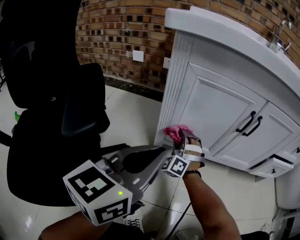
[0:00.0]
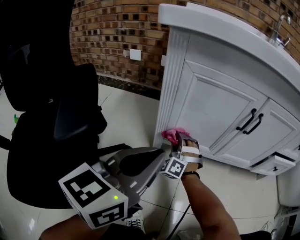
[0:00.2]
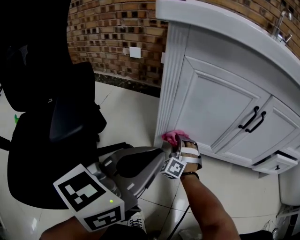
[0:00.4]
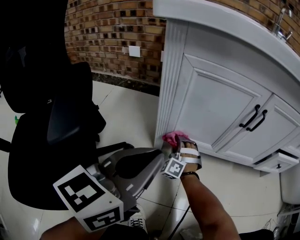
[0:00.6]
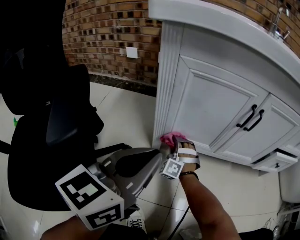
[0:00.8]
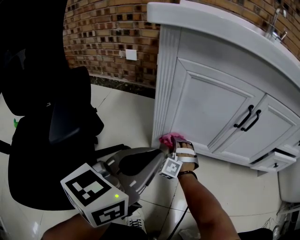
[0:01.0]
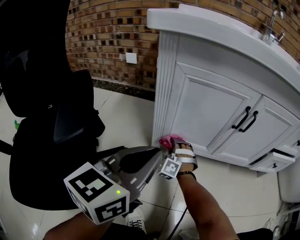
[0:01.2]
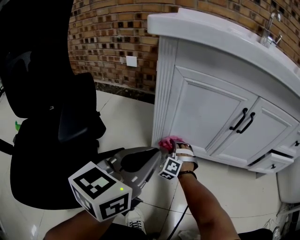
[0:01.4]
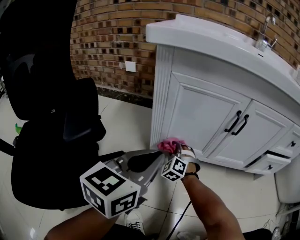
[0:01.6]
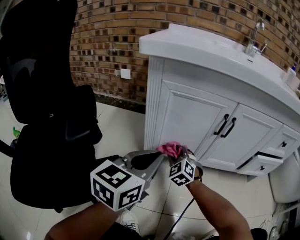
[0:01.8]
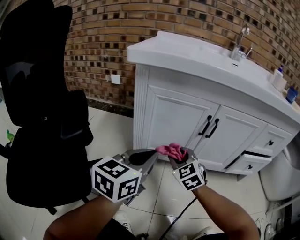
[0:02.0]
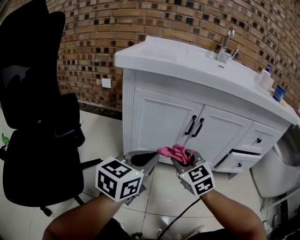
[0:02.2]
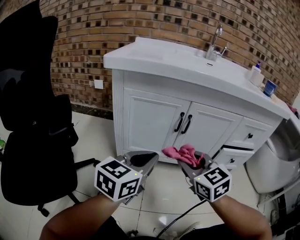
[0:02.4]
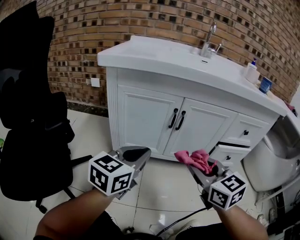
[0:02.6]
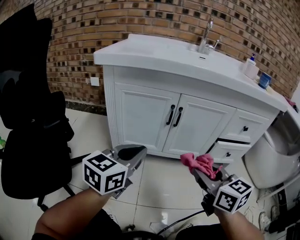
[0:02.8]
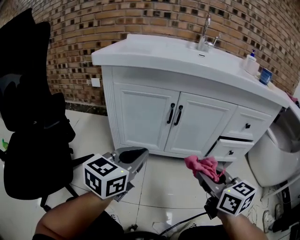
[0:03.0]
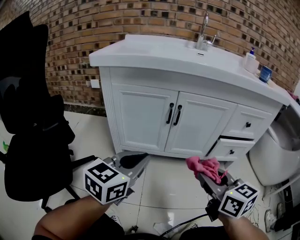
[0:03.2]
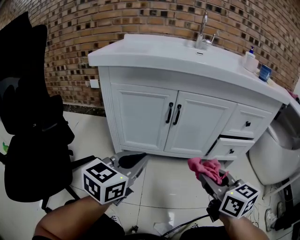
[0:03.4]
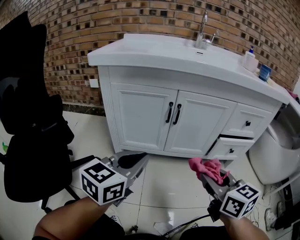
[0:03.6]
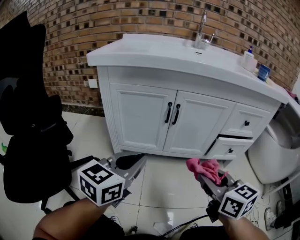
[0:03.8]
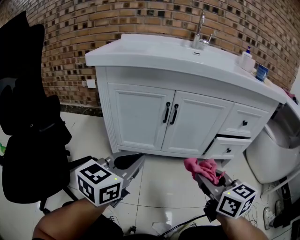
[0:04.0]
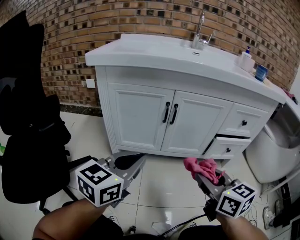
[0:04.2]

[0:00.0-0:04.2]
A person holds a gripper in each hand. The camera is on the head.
0:00.0 to 0:01.4: The right gripper travels downward by about 10 cm.
0:01.4 to 0:02.8: The left gripper heads to the right, covering about 15 cm. The right gripper goes about 50 cm upward, to the right and backward, and rotates around the line of its fingers by about 80 degrees, clockwise from behind.
0:02.8 to 0:04.2: The grippers stay close to where they were, moving slightly.

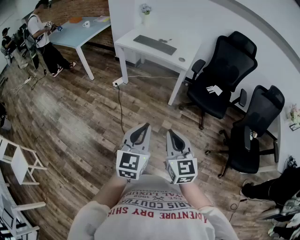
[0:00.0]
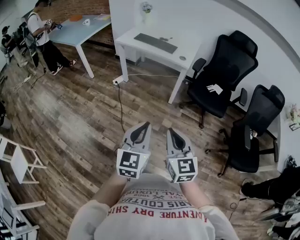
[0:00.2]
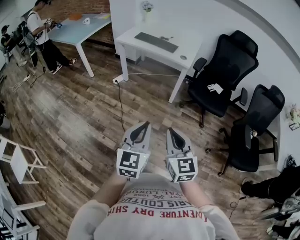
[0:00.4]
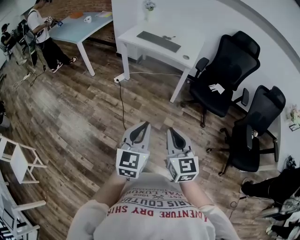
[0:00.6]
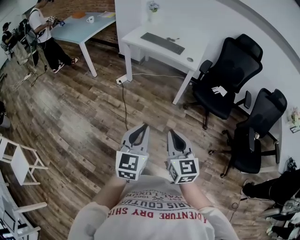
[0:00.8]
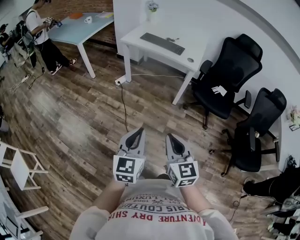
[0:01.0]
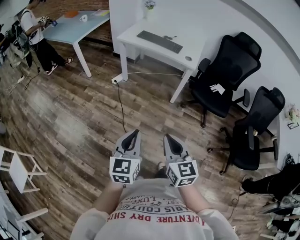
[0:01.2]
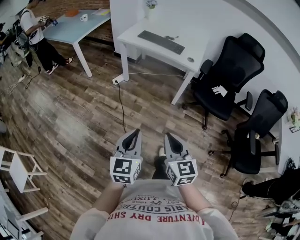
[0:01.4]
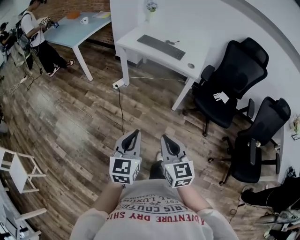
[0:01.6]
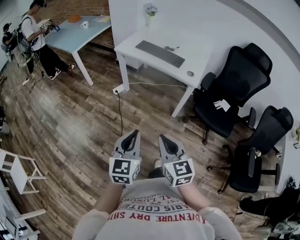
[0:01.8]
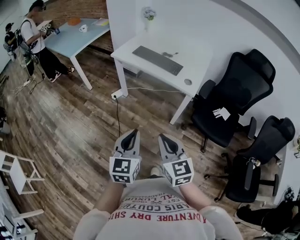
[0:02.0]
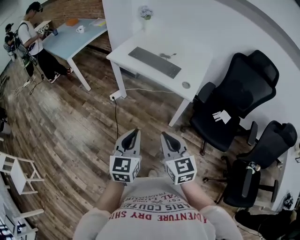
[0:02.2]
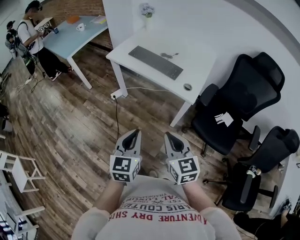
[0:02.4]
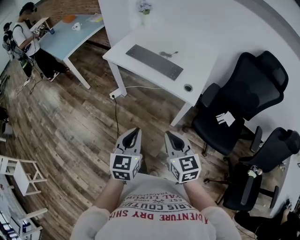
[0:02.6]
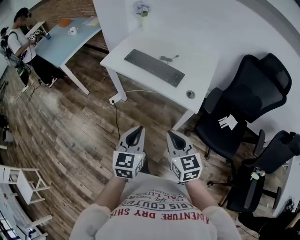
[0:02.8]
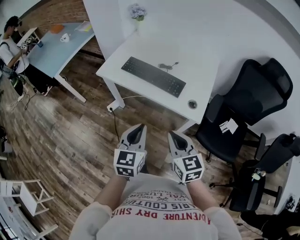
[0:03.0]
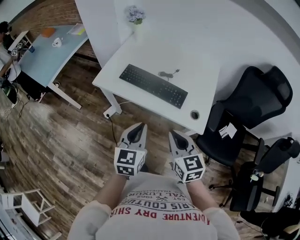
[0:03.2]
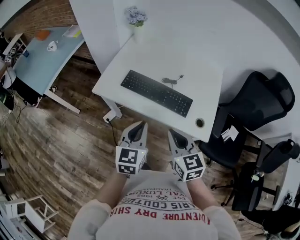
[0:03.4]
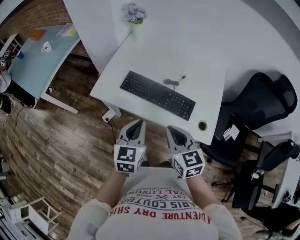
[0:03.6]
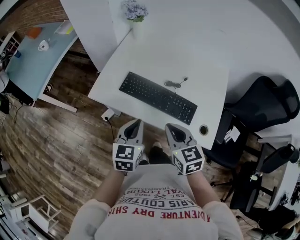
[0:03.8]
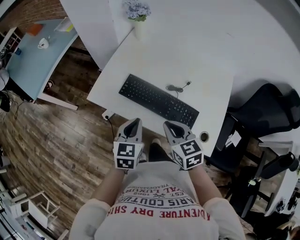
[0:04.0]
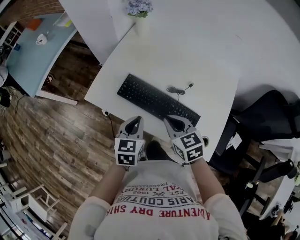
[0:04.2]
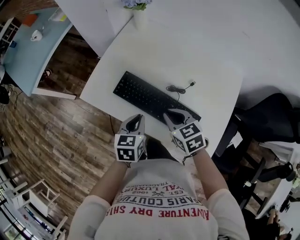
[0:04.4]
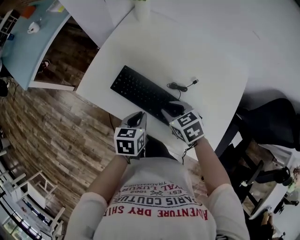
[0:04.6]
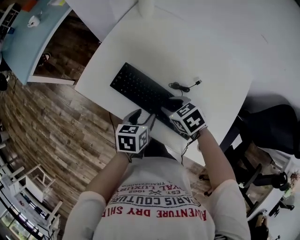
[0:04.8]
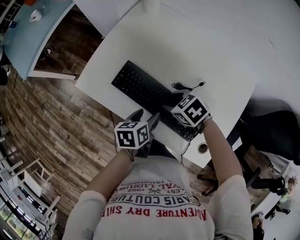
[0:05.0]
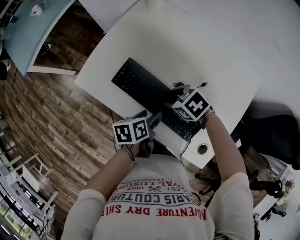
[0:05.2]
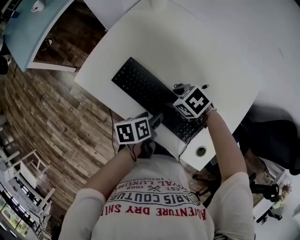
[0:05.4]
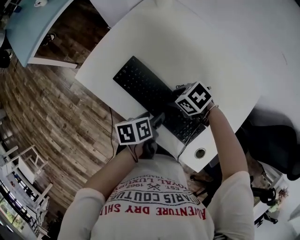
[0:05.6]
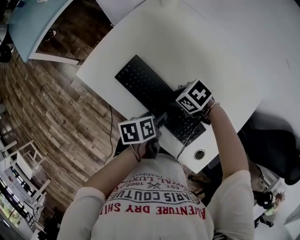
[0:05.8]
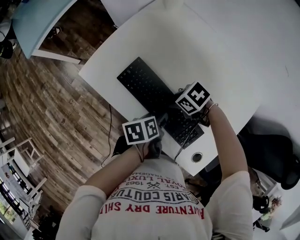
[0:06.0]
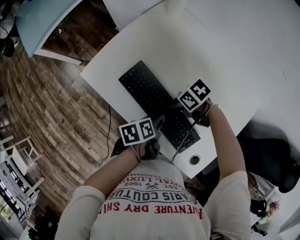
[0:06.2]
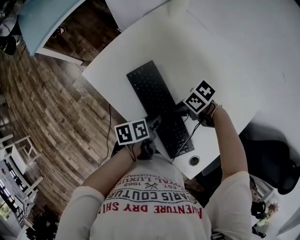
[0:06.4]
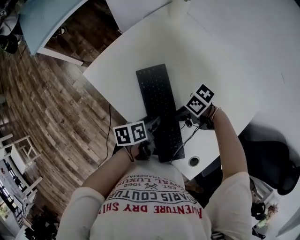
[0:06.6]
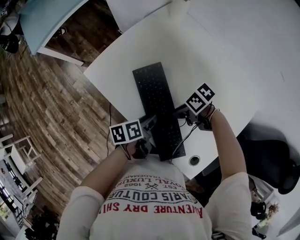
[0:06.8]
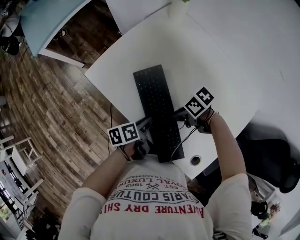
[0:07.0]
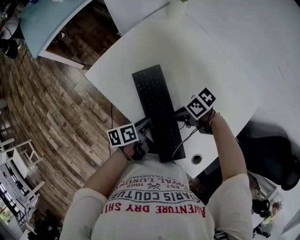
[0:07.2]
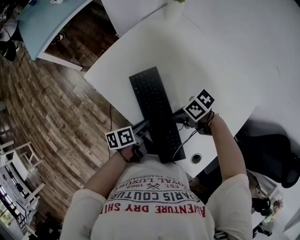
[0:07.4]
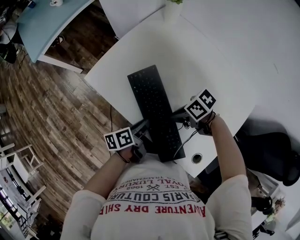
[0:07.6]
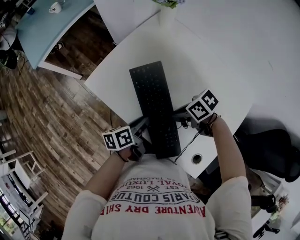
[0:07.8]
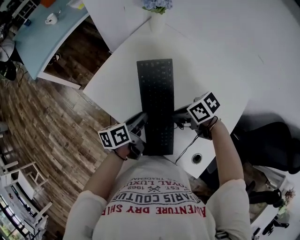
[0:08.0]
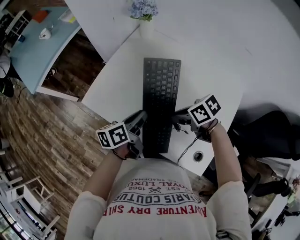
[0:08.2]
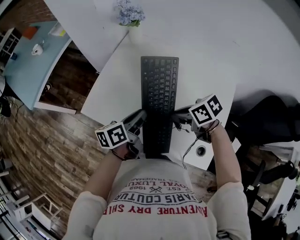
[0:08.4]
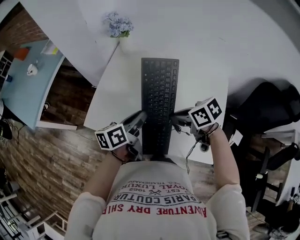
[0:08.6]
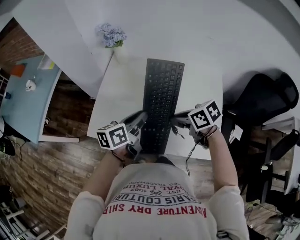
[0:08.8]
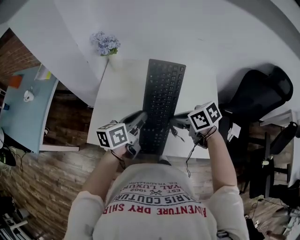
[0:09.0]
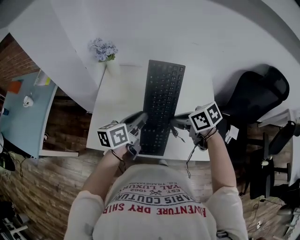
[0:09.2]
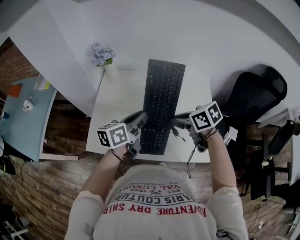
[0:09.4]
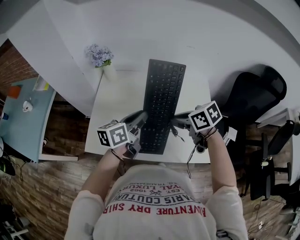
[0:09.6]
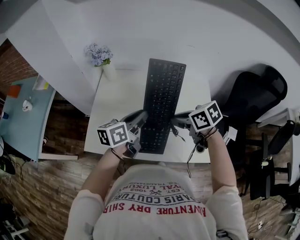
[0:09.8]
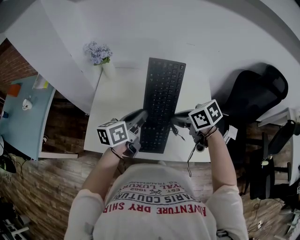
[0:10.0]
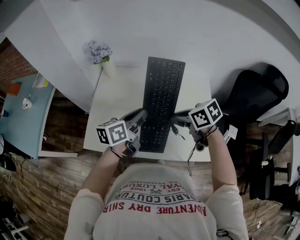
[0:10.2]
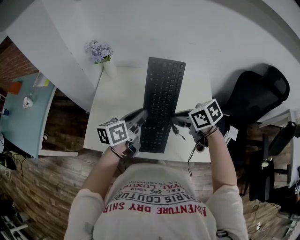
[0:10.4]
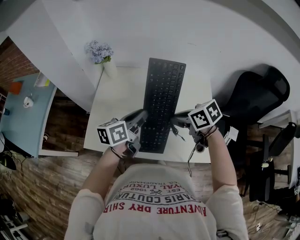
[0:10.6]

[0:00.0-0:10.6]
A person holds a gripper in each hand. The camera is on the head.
0:00.0 to 0:01.6: The right gripper heads forward and to the left, covering about 10 cm, while the left gripper goes approximately 15 cm forward, to the left and downward.
0:01.6 to 0:03.0: The two grippers go about 35 cm forward.
0:03.0 to 0:04.6: The two grippers go some 30 cm forward and downward. The right gripper tilts its fingers roughly 30 degrees downward, and opens; the left gripper rotates roughly 40 degrees.
0:04.6 to 0:06.0: Both grippers travel together downward, about 5 cm. The left gripper rotates around the line of its fingers by some 40 degrees, counterclockwise from behind, and opens up, while the right gripper turns by approximately 40 degrees, and opens up.
0:06.0 to 0:07.6: The left gripper ends up roughly 5 cm from where it was, rotates approximately 20 degrees, and closes. Meanwhile the right gripper changes place by roughly 5 cm, and closes.
0:07.6 to 0:09.0: Both grippers travel together upward, approximately 20 cm. The right gripper rotates some 60 degrees. The left gripper changes its angle by roughly 50 degrees.
0:09.0 to 0:10.6: The grippers make only small movements.

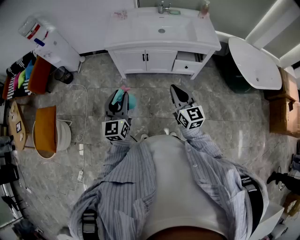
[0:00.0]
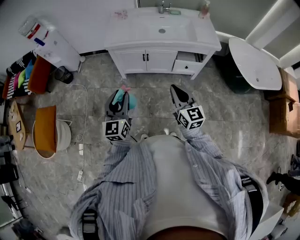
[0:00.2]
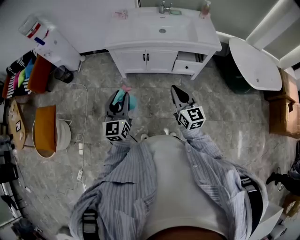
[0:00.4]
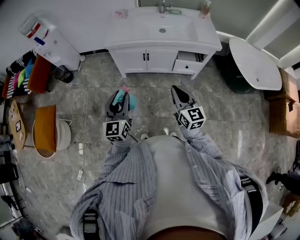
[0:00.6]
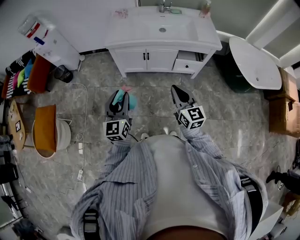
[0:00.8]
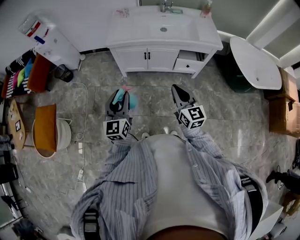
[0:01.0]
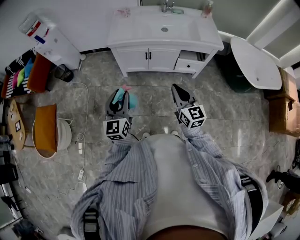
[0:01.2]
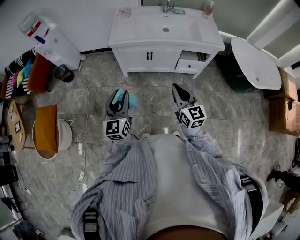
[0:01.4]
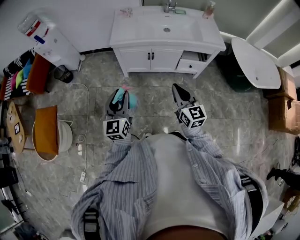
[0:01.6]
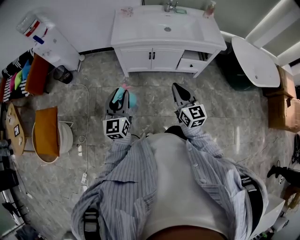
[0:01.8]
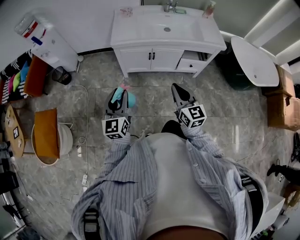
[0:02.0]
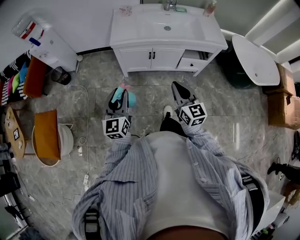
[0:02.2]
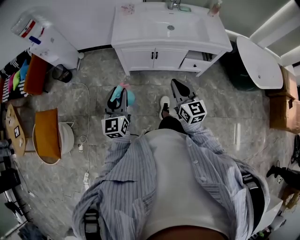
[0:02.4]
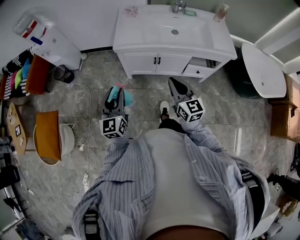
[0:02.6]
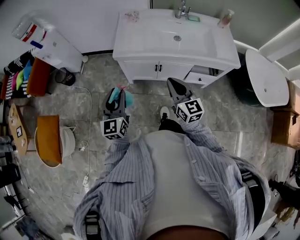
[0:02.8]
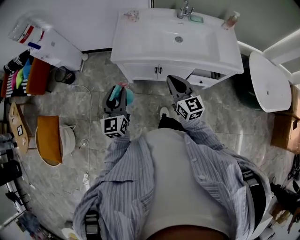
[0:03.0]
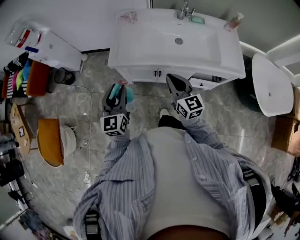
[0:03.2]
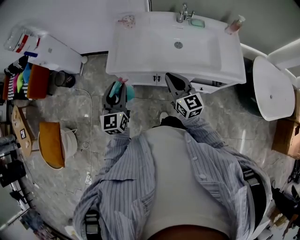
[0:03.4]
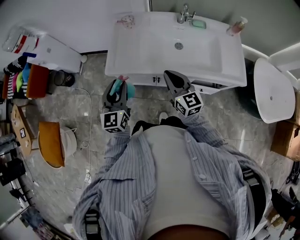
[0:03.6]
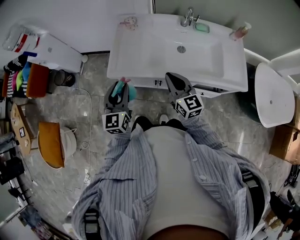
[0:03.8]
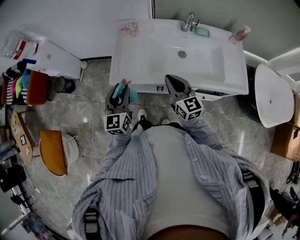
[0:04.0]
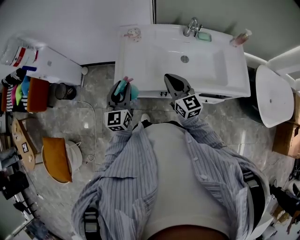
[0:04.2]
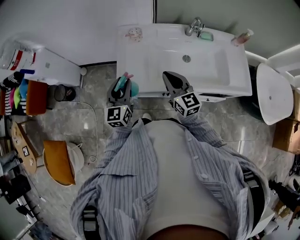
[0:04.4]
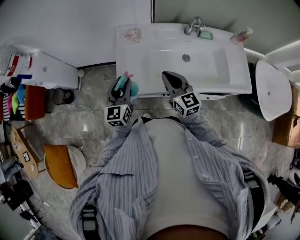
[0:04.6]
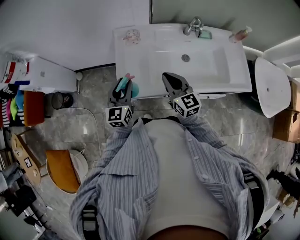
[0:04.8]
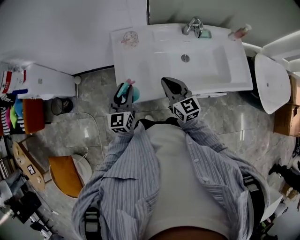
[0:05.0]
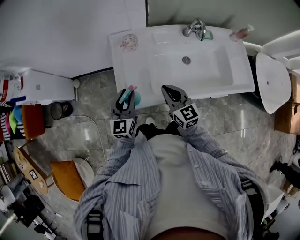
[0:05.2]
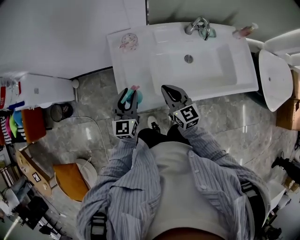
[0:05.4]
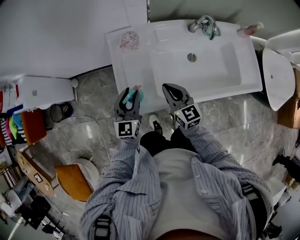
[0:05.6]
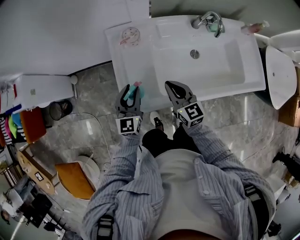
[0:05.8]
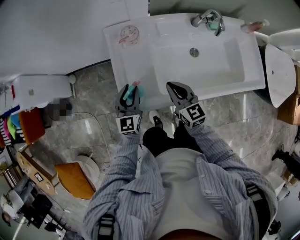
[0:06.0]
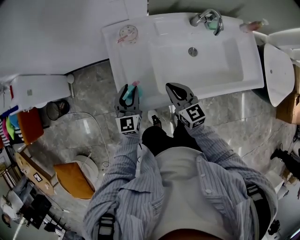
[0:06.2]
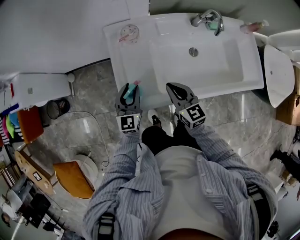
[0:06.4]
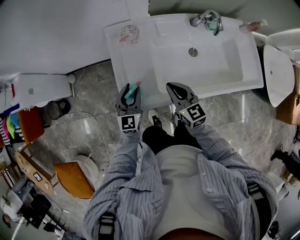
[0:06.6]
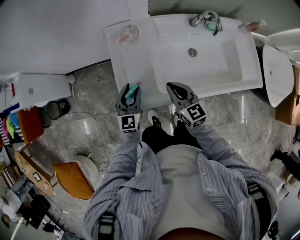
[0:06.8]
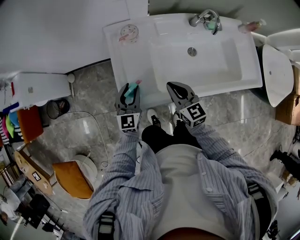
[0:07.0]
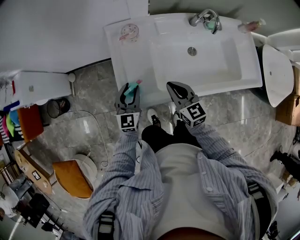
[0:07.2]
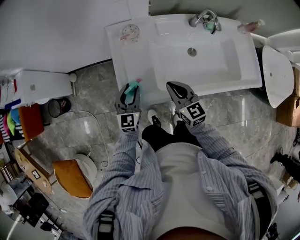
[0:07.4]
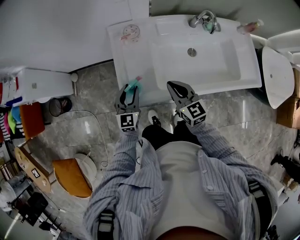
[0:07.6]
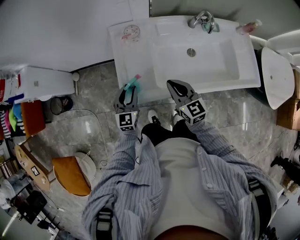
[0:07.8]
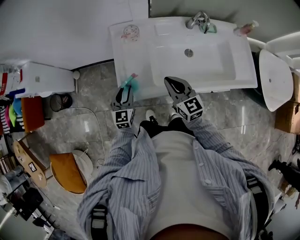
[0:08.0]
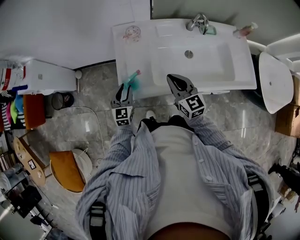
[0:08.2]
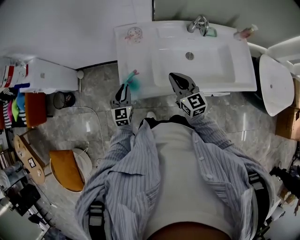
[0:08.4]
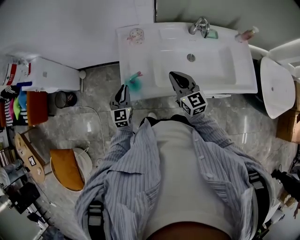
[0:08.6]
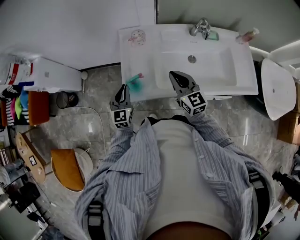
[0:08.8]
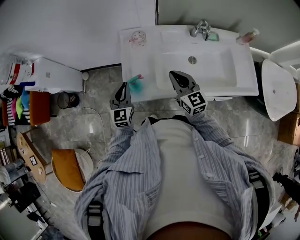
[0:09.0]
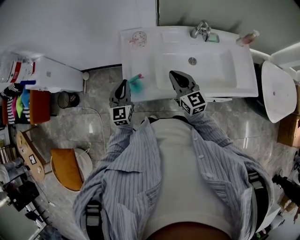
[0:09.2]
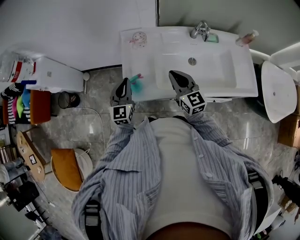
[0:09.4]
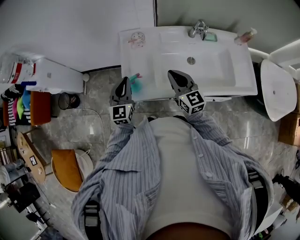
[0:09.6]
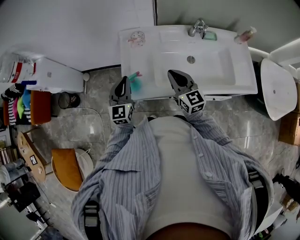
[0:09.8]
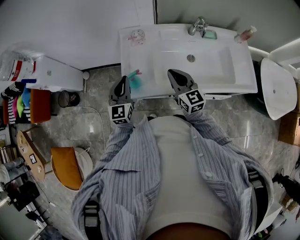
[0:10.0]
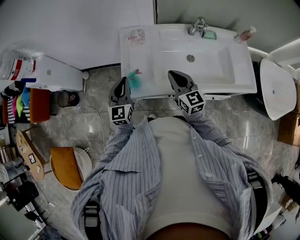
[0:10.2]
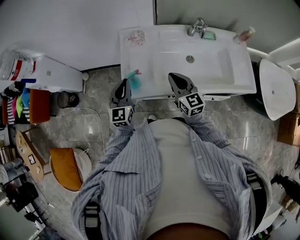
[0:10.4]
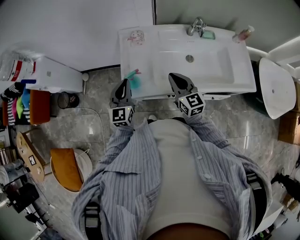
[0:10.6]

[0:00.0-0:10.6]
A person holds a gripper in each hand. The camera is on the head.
0:00.0 to 0:01.6: Both grippers travel together to the left, about 5 cm.
0:01.6 to 0:03.0: Both grippers move forward, approximately 30 cm.
0:03.0 to 0:04.6: Both grippers travel together forward, roughly 30 cm.
0:04.6 to 0:06.0: The grippers both shift downward and forward by roughly 15 cm.
0:06.0 to 0:07.6: The grippers make only small movements.
0:07.6 to 0:09.0: Both grippers move upward, roughly 10 cm. The left gripper closes its fingers.
0:09.0 to 0:10.6: The left gripper travels upward by about 5 cm.
